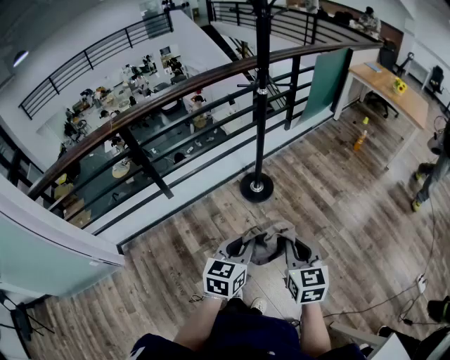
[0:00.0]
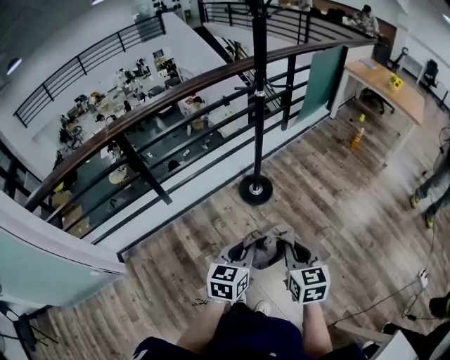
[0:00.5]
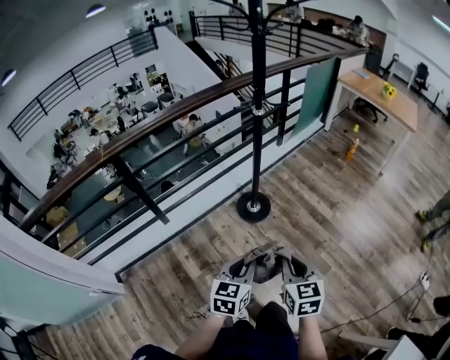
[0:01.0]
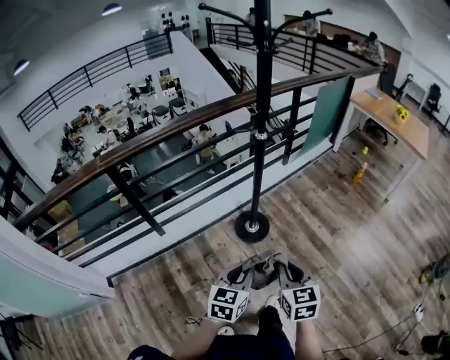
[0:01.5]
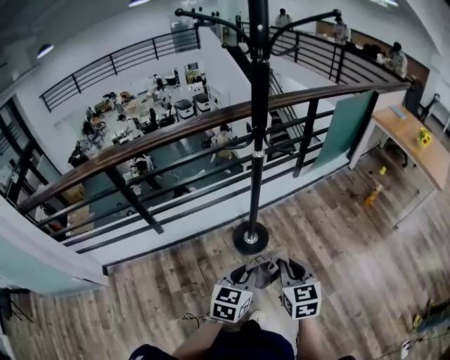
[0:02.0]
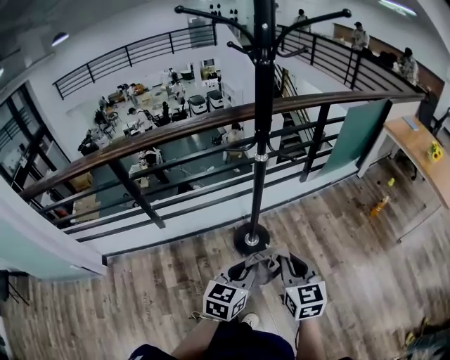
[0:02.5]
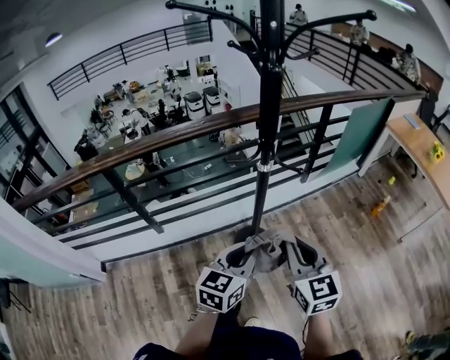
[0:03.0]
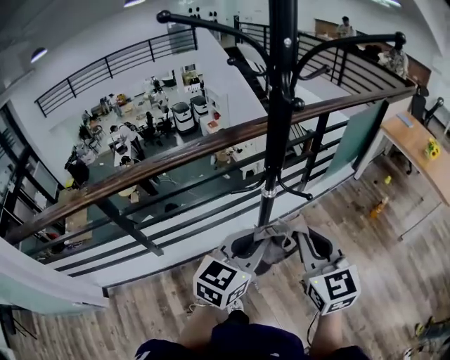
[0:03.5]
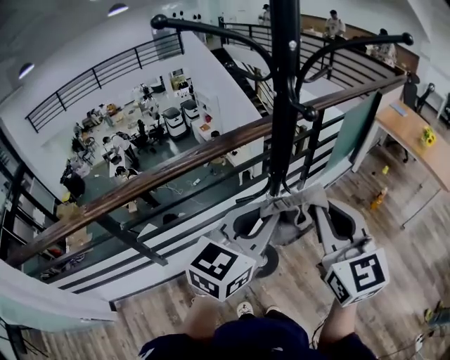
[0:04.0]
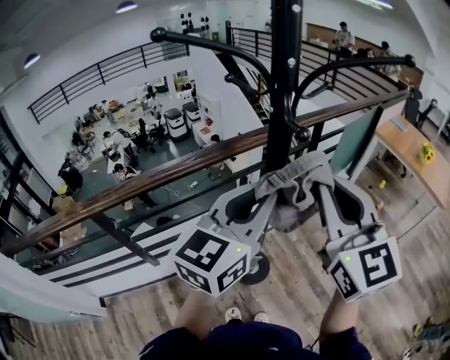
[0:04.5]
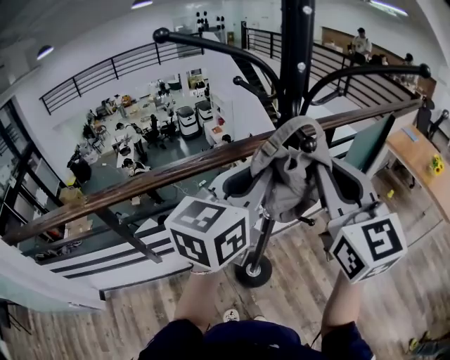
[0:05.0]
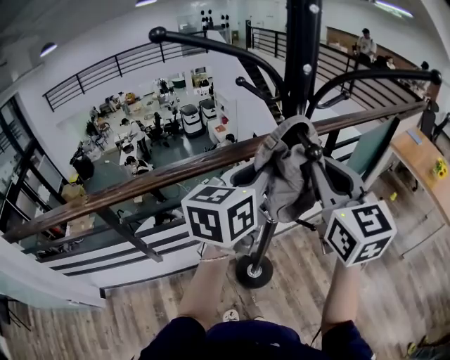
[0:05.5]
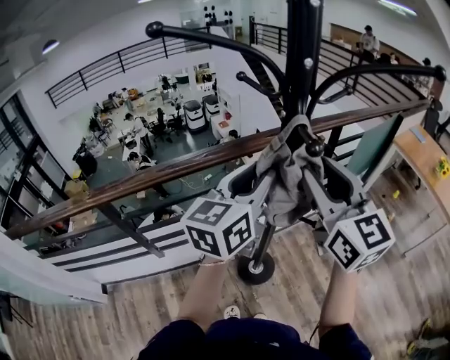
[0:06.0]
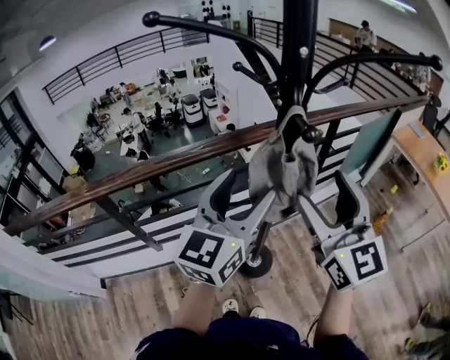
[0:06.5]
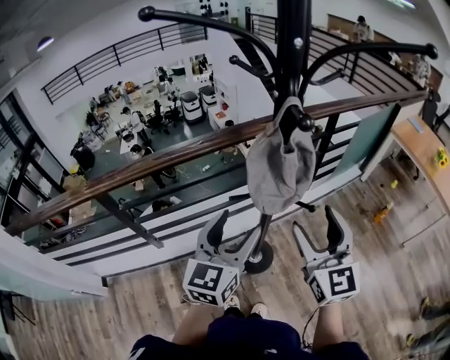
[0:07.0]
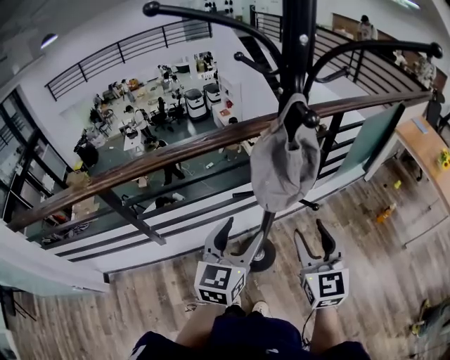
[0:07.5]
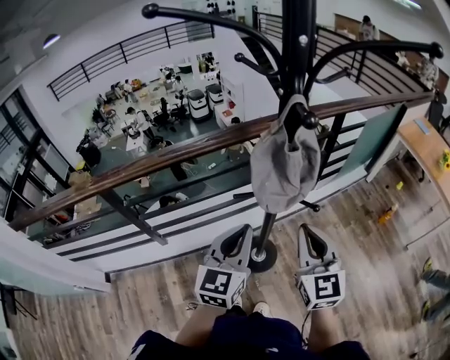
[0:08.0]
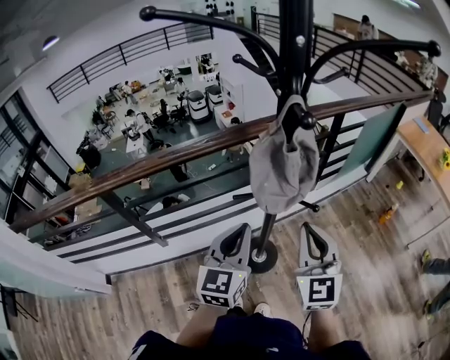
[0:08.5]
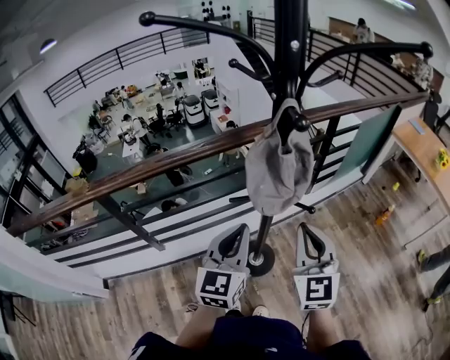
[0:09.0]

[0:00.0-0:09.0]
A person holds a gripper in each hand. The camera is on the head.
0:00.0 to 0:02.0: Both grippers move forward, approximately 25 cm.
0:02.0 to 0:04.5: Both grippers move upward and forward, approximately 40 cm. The left gripper rotates some 30 degrees; the right gripper angles its fingers upward, by about 30 degrees.
0:04.5 to 0:07.0: The grippers both shift downward by roughly 15 cm. The right gripper opens its fingers; the left gripper rotates approximately 20 degrees, and opens up.
0:07.0 to 0:09.0: The right gripper closes up. Meanwhile the left gripper closes.

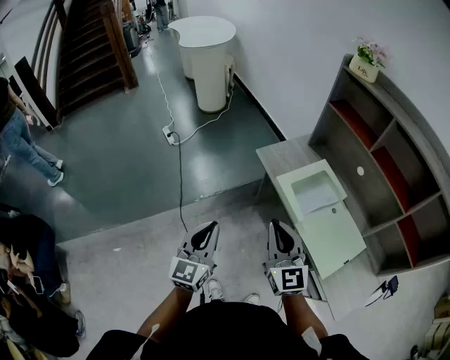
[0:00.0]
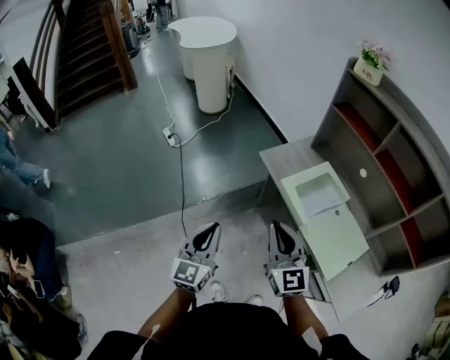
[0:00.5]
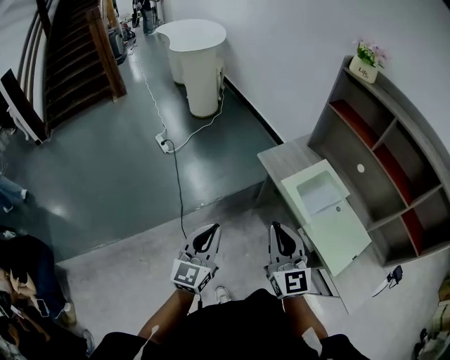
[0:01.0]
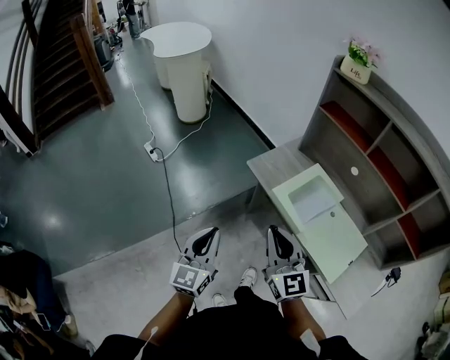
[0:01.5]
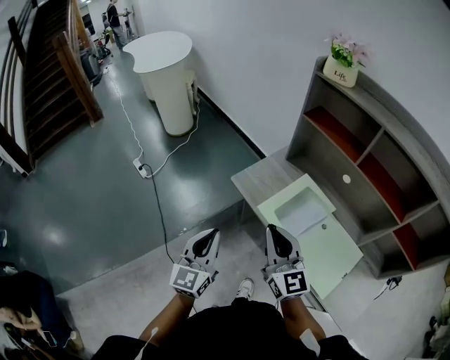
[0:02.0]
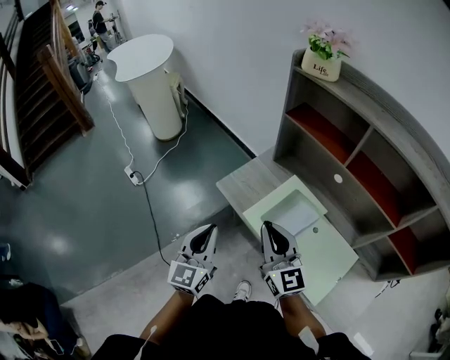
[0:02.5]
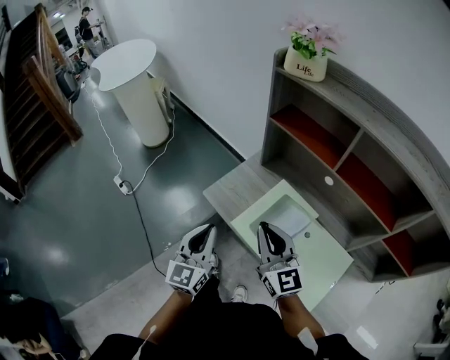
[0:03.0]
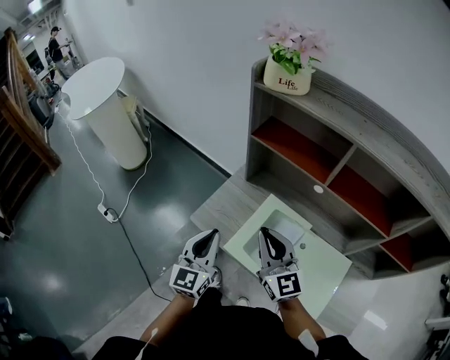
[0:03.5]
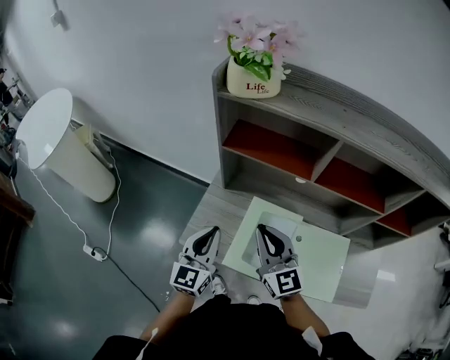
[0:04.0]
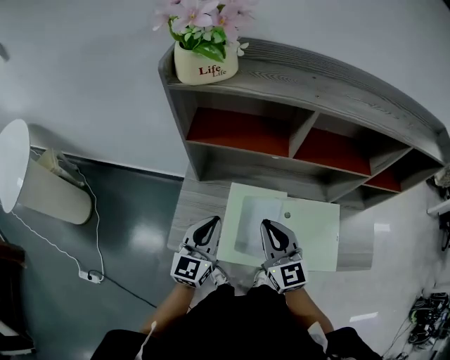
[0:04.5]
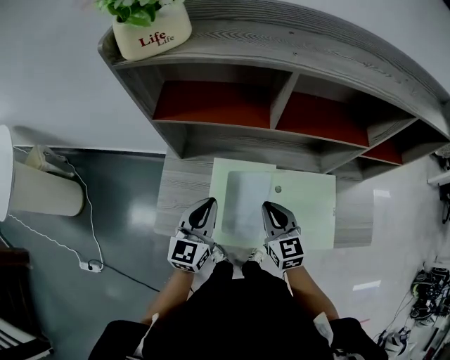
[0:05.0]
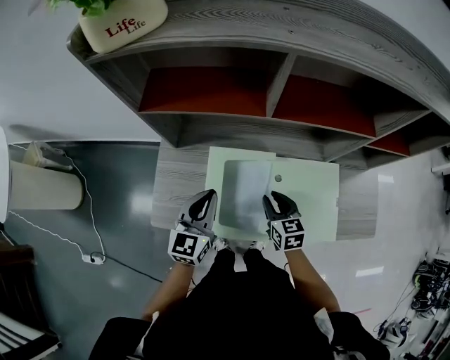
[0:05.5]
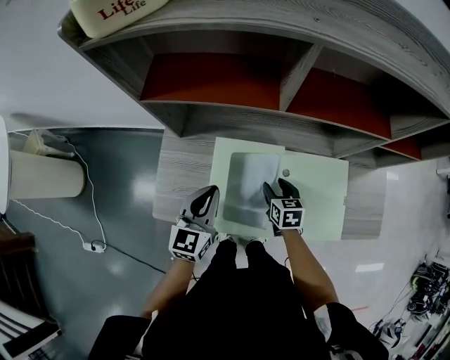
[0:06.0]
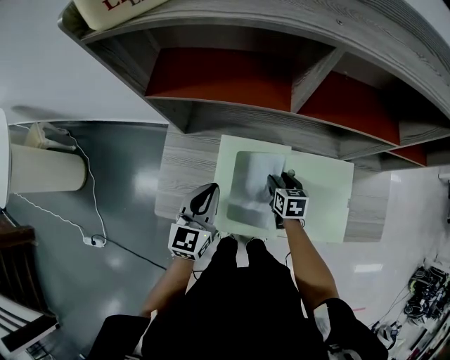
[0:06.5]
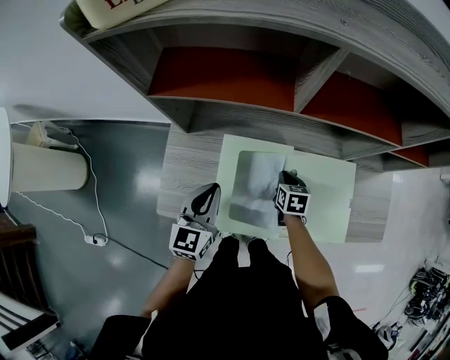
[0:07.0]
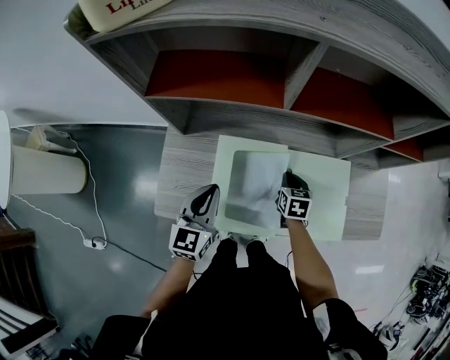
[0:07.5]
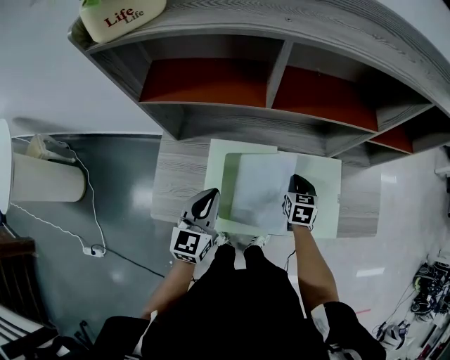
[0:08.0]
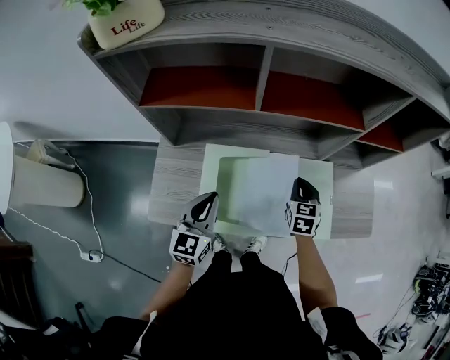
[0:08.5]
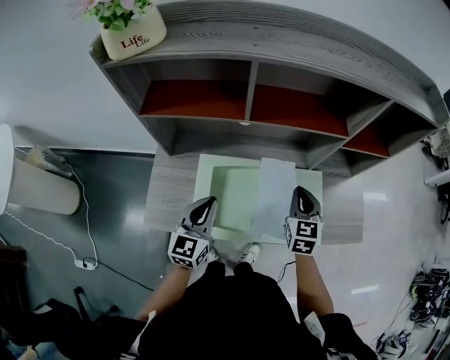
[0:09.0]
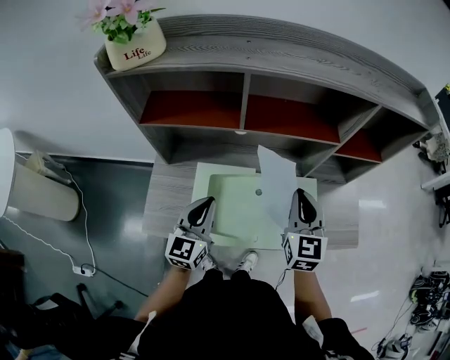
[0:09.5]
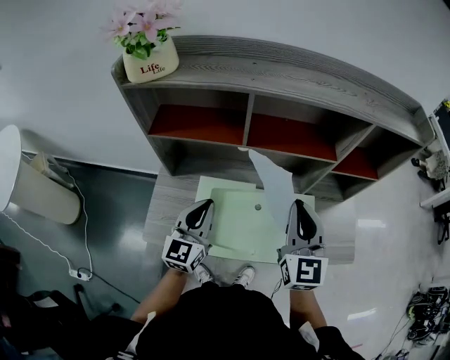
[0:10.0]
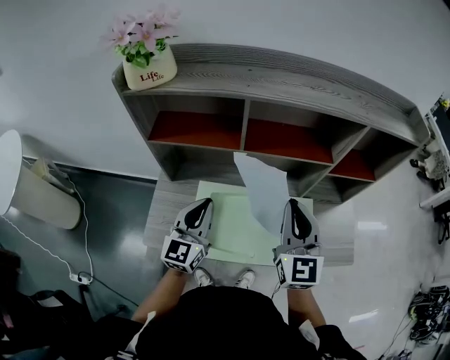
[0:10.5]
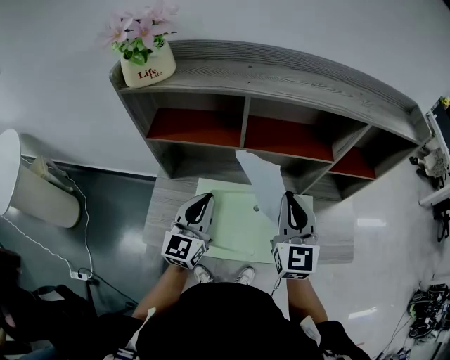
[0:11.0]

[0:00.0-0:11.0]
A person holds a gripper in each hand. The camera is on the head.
0:00.0 to 0:02.0: The two grippers go about 15 cm forward.
0:02.0 to 0:03.5: Both grippers move forward and to the right, some 20 cm.
0:03.5 to 0:05.5: The right gripper shifts approximately 25 cm downward, points its fingers roughly 40 degrees further downward, and opens its fingers. The left gripper changes place by roughly 20 cm, and turns by about 40 degrees.
0:05.5 to 0:07.5: The right gripper goes approximately 10 cm downward and forward, and closes up.
0:07.5 to 0:09.0: The left gripper is displaced to the right by about 5 cm. The right gripper heads upward and to the right, covering about 20 cm, and swivels approximately 30 degrees.
0:09.0 to 0:11.0: The right gripper goes about 20 cm upward, and changes its angle by some 30 degrees. Meanwhile the left gripper travels upward by some 10 cm.

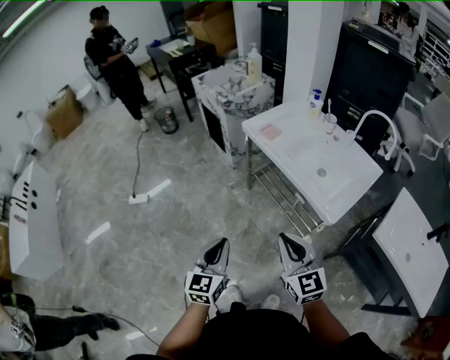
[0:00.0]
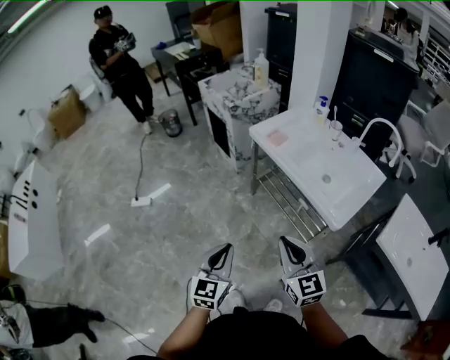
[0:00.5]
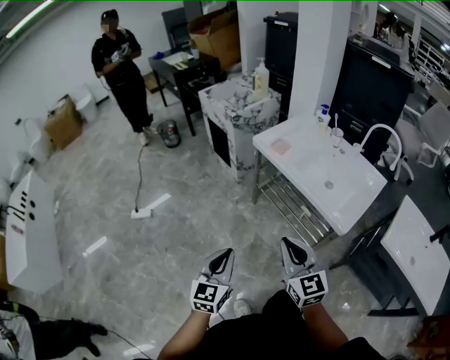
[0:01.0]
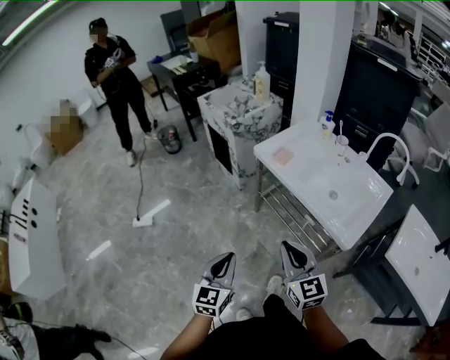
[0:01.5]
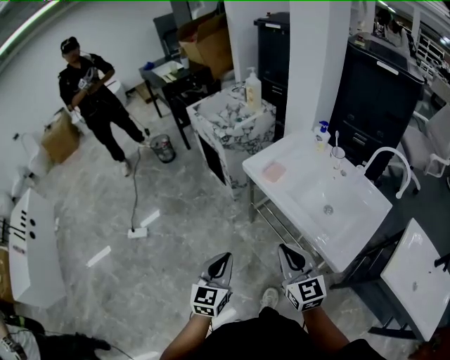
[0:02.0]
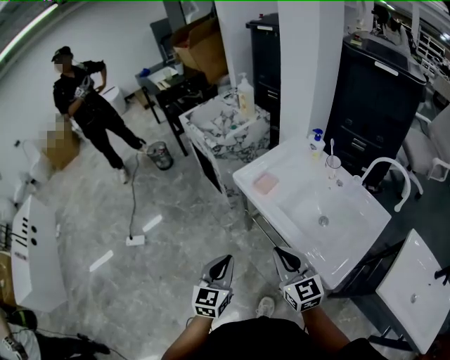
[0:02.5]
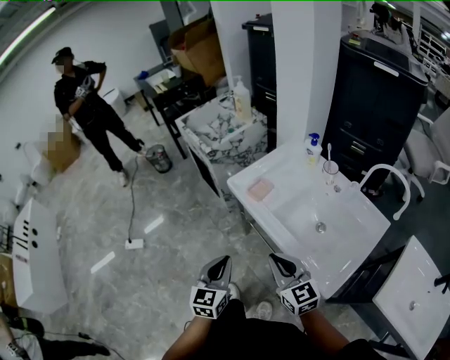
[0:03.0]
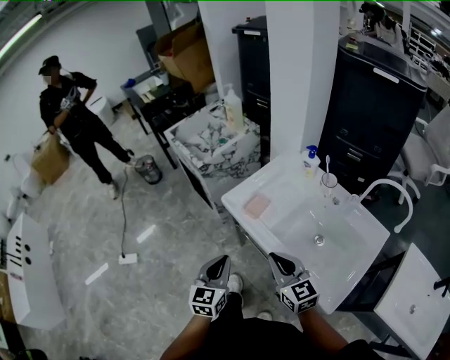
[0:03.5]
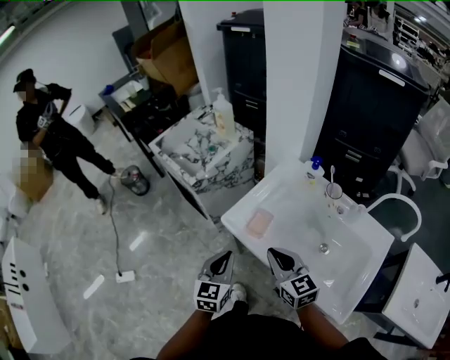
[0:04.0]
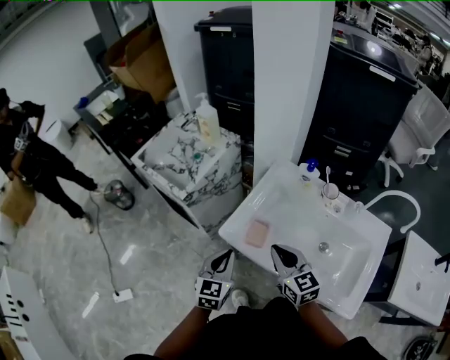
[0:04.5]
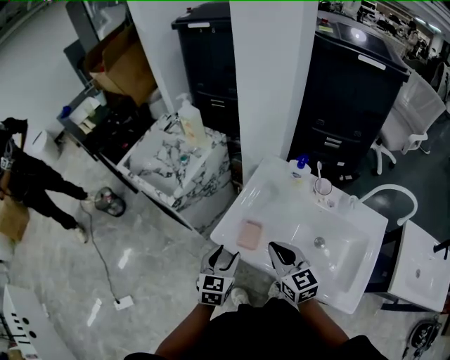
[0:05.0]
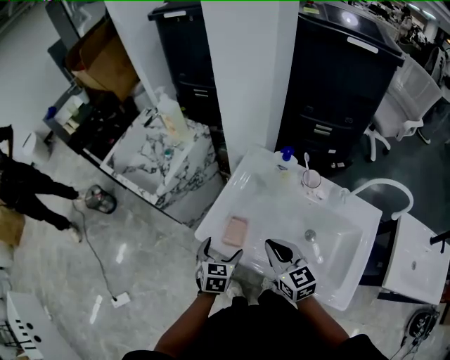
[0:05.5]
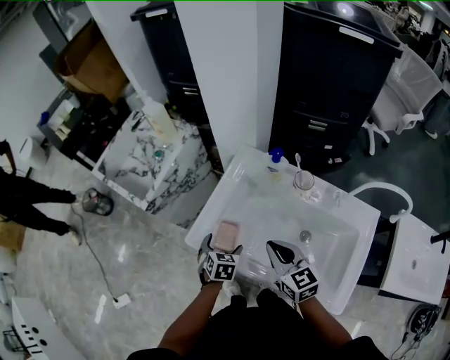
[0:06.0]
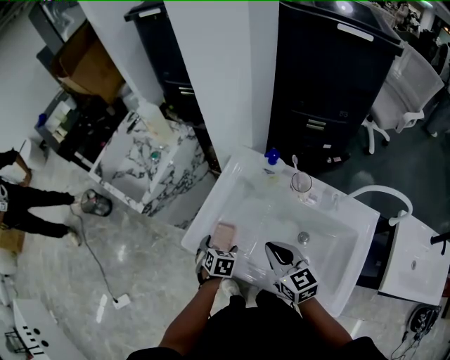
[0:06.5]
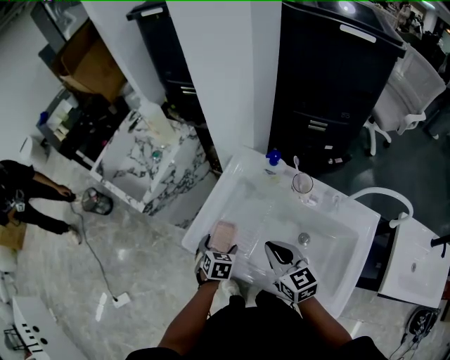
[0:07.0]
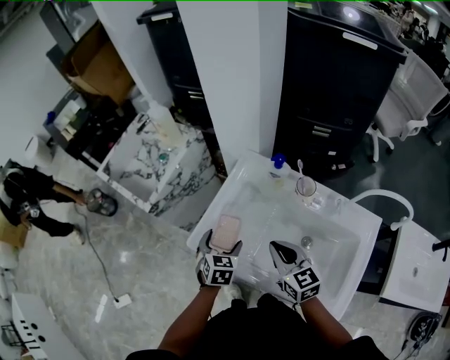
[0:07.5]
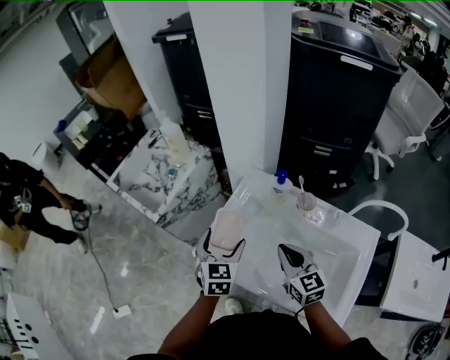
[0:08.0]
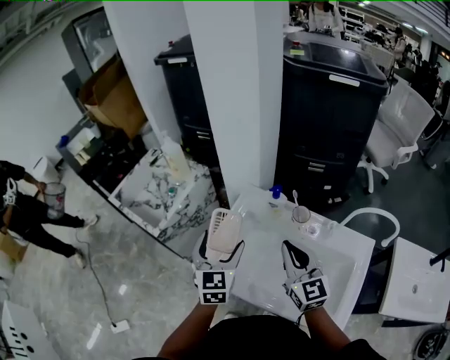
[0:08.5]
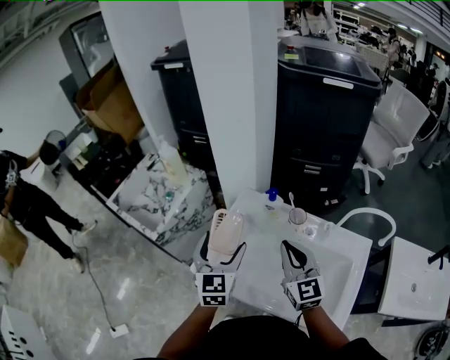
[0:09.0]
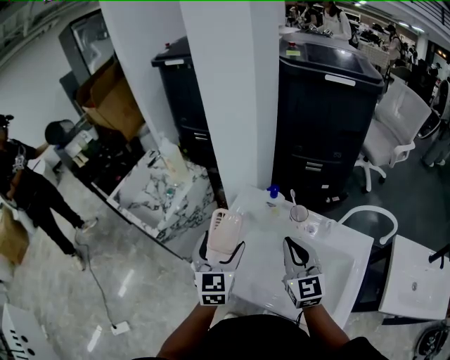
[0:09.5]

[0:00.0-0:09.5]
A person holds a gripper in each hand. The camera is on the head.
0:00.0 to 0:02.0: Both grippers travel together forward, approximately 15 cm.
0:02.0 to 0:04.0: The grippers both shift forward by roughly 30 cm.
0:04.0 to 0:05.5: The right gripper travels forward by about 5 cm; the left gripper is displaced forward and downward by some 15 cm, turns by about 20 degrees, and opens up.
0:05.5 to 0:07.5: The right gripper travels to the right by some 5 cm, while the left gripper shifts roughly 5 cm forward, and moves roughly 5 cm downward and comes back.
0:07.5 to 0:09.5: The right gripper shifts approximately 15 cm upward, and changes its angle by approximately 30 degrees. Meanwhile the left gripper shifts some 20 cm upward, and tilts its fingers some 30 degrees upward.
